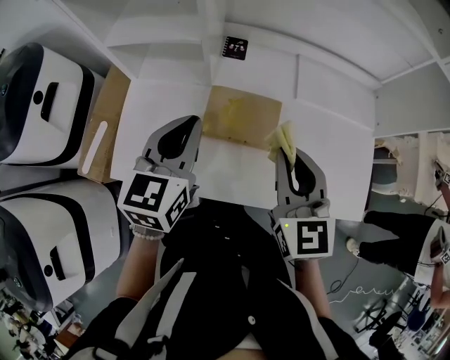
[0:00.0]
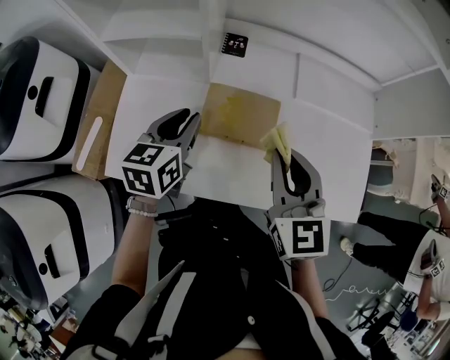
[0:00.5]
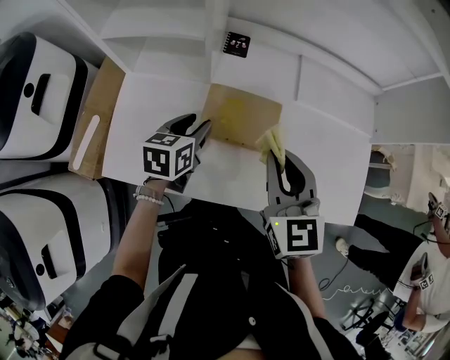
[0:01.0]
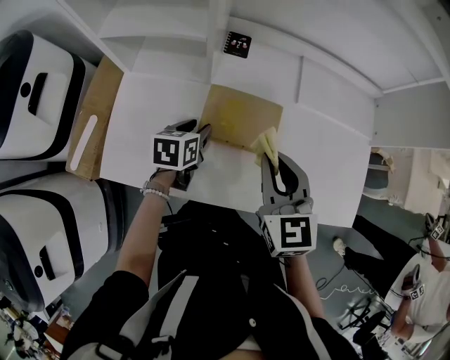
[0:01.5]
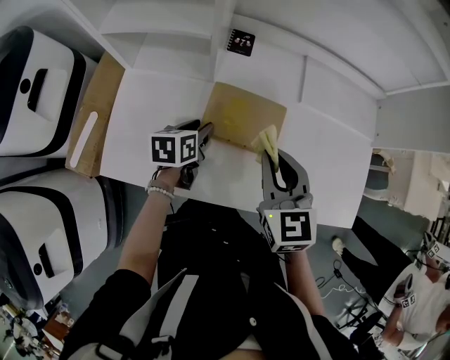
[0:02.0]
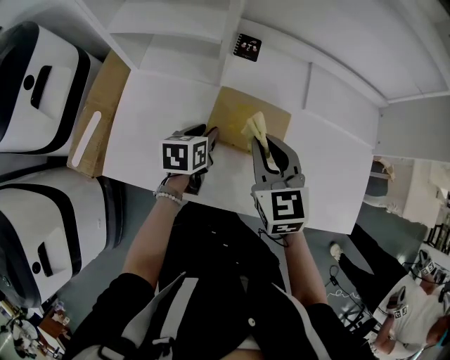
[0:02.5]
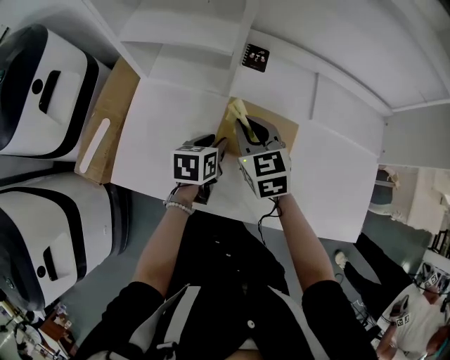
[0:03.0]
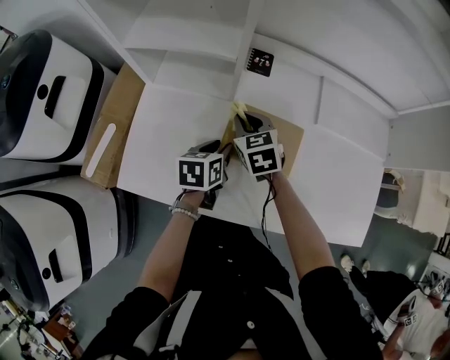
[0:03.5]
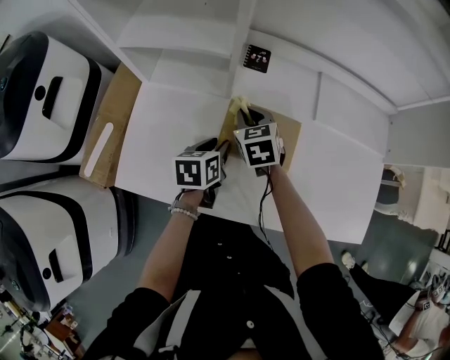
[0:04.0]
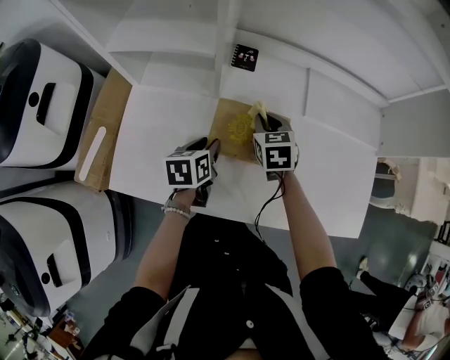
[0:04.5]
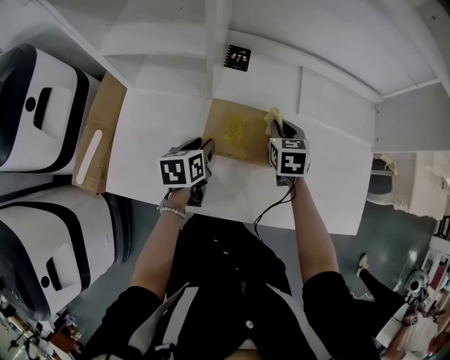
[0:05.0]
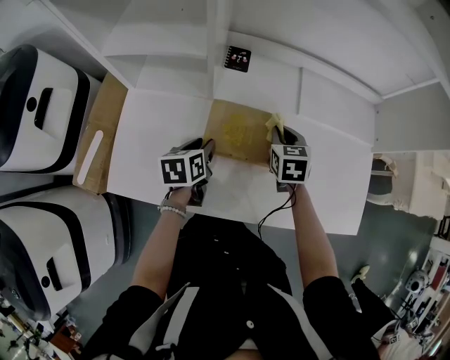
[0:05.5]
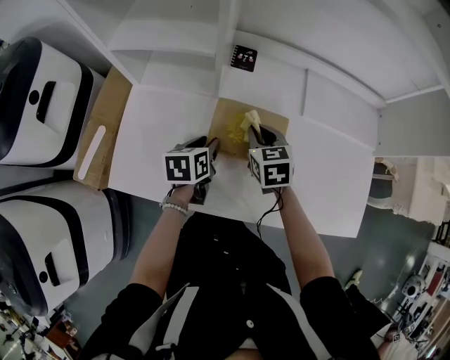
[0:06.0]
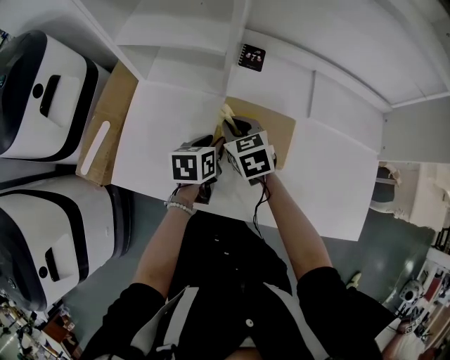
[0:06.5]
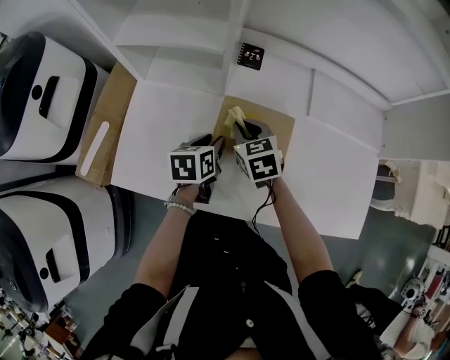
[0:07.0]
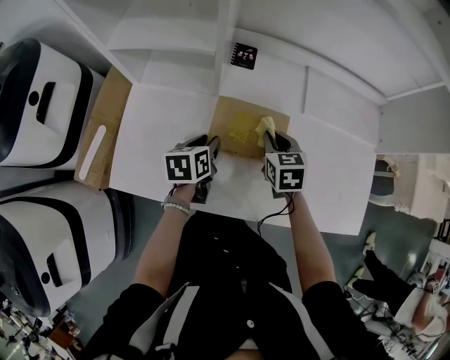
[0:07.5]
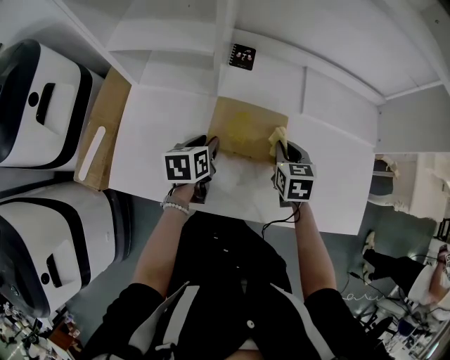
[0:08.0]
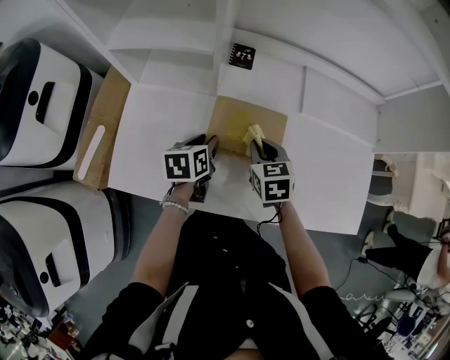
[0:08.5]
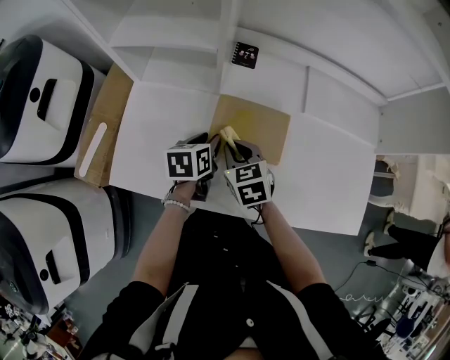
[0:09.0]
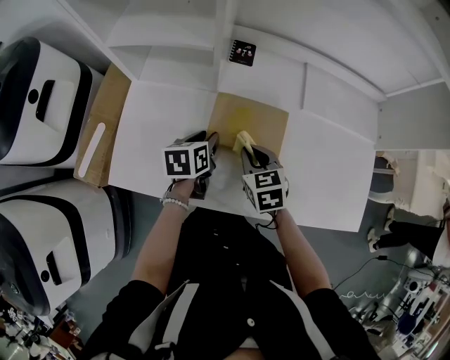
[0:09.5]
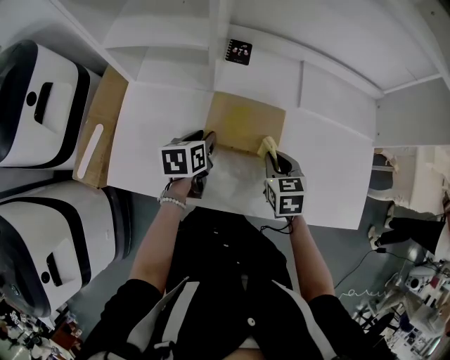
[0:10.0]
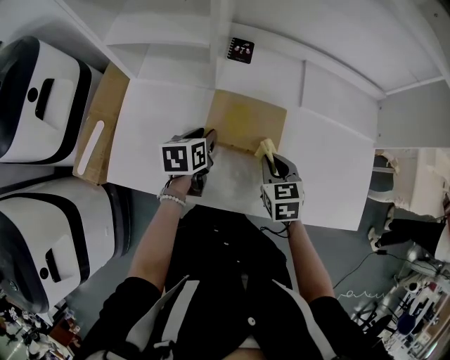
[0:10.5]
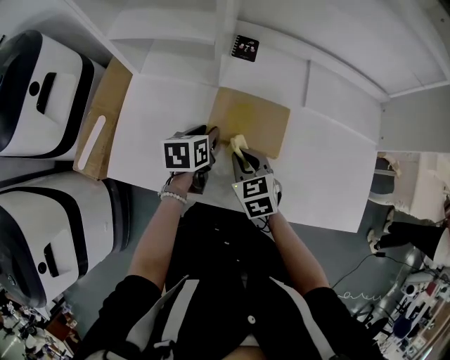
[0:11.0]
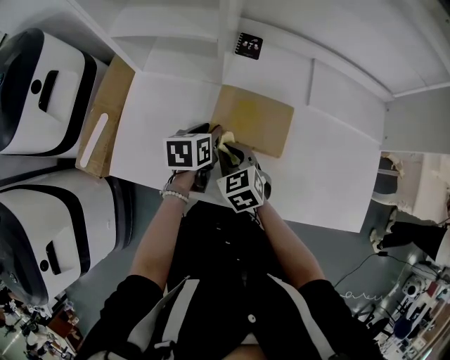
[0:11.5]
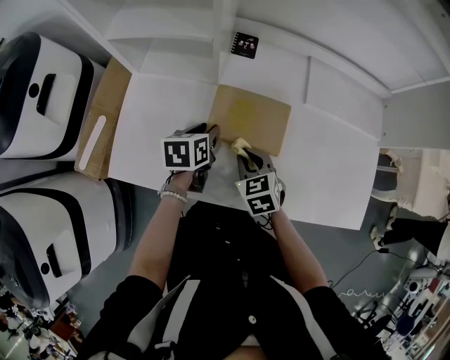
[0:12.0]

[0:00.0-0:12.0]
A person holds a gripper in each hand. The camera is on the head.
0:00.0 to 0:02.0: The left gripper shifts some 25 cm downward, changes its angle by roughly 40 degrees, and opens its fingers. The right gripper moves downward, about 5 cm.
0:02.0 to 0:04.0: The right gripper travels forward, downward and to the left by about 25 cm.
0:04.0 to 0:06.0: The right gripper moves to the right, roughly 5 cm.
0:06.0 to 0:08.0: The right gripper heads to the right, covering roughly 10 cm.
0:08.0 to 0:10.0: The right gripper heads backward, covering roughly 5 cm, and travels to the left and back again, roughly 15 cm each way.
0:10.0 to 0:12.0: The right gripper heads to the left, covering some 10 cm.

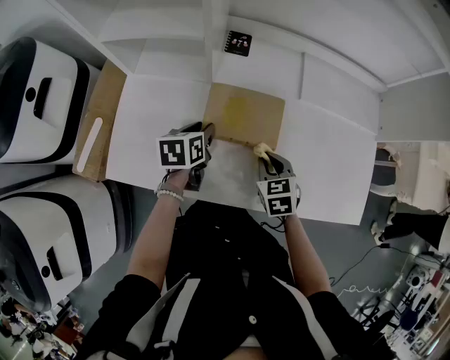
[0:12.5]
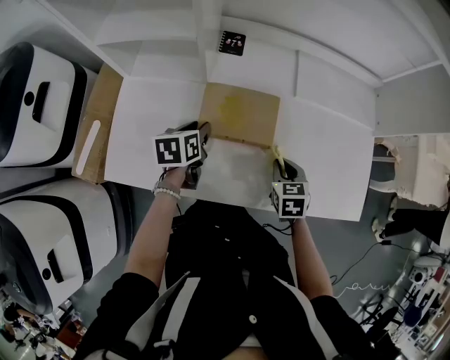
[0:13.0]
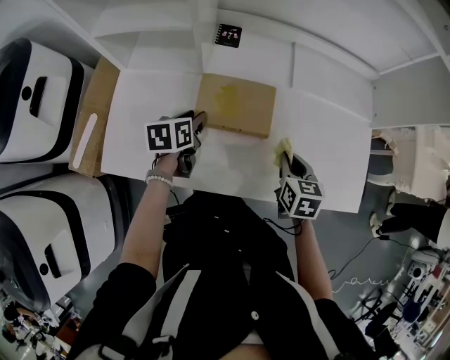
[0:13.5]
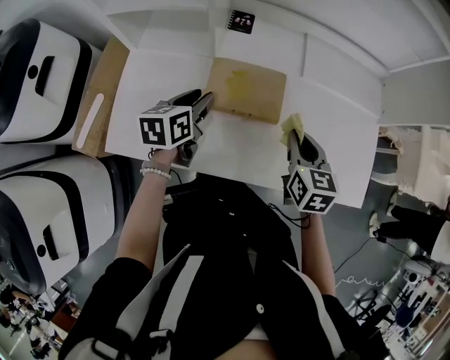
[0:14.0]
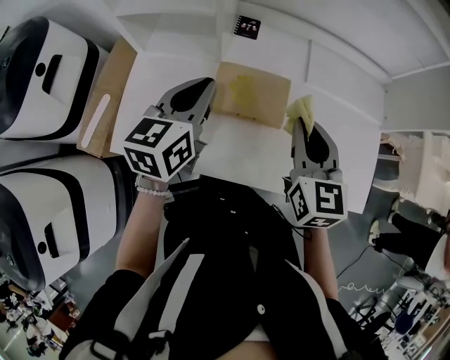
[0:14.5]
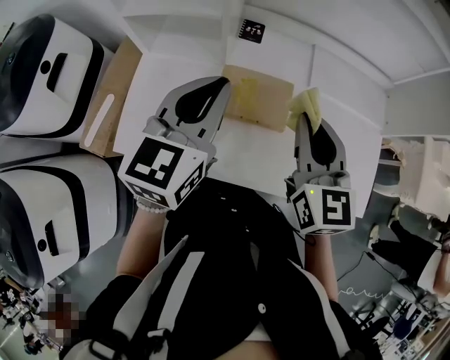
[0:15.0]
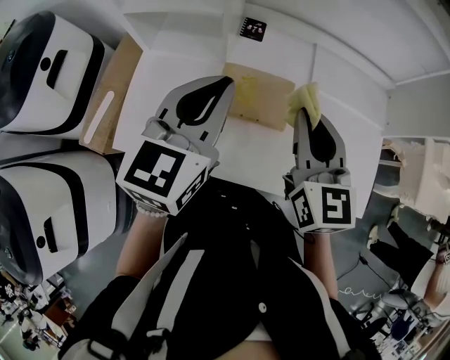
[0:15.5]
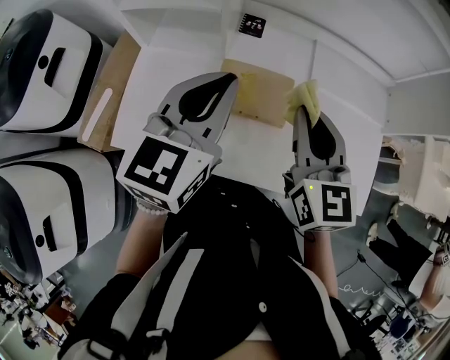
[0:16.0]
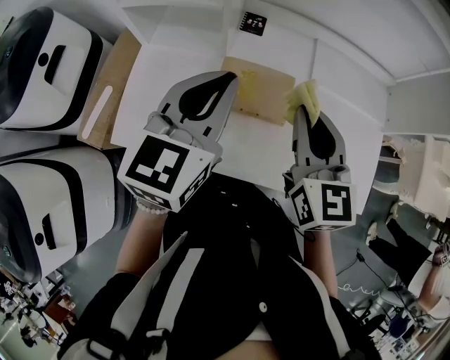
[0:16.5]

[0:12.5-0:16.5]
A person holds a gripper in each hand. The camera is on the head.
0:12.5 to 0:14.5: The two grippers go some 20 cm upward. The left gripper changes its angle by approximately 30 degrees, and closes. Meanwhile the right gripper tilts its fingers some 30 degrees upward.
0:14.5 to 0:16.5: The right gripper shifts by some 5 cm. The left gripper is displaced upward by some 10 cm.

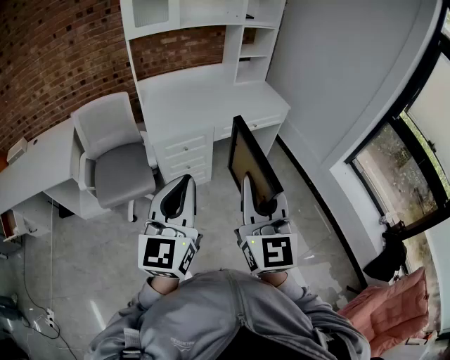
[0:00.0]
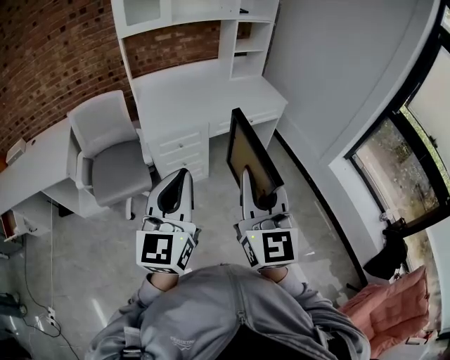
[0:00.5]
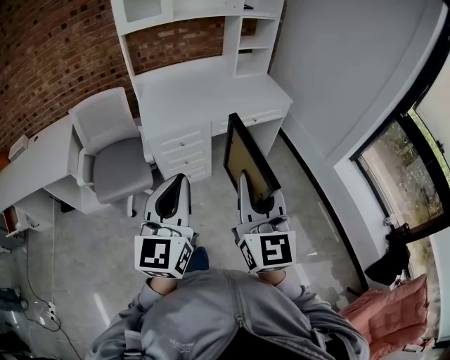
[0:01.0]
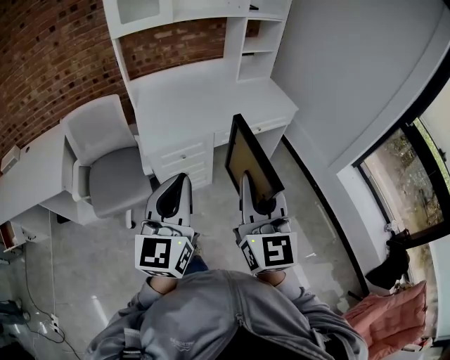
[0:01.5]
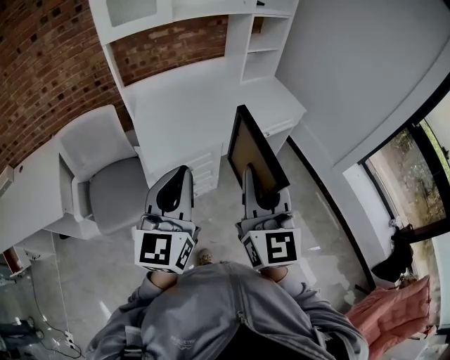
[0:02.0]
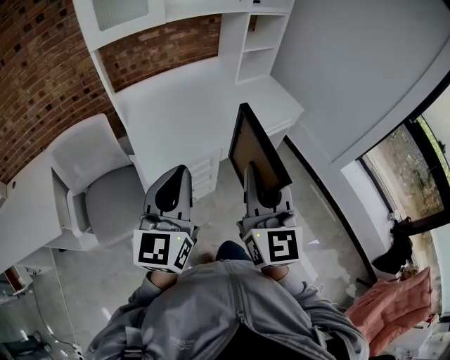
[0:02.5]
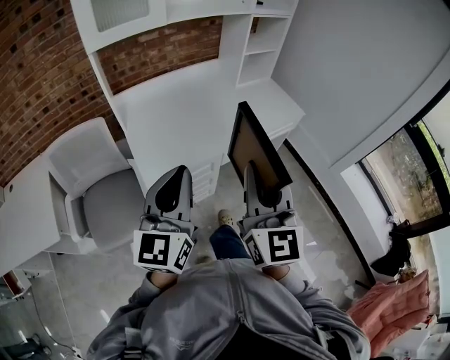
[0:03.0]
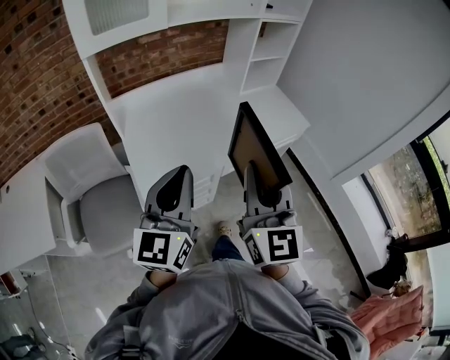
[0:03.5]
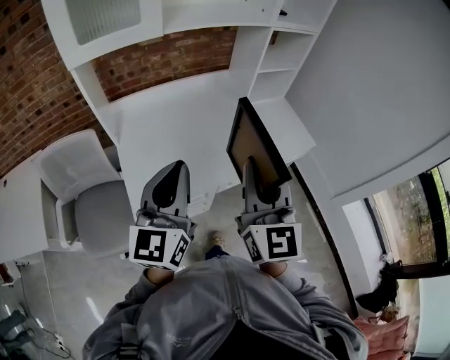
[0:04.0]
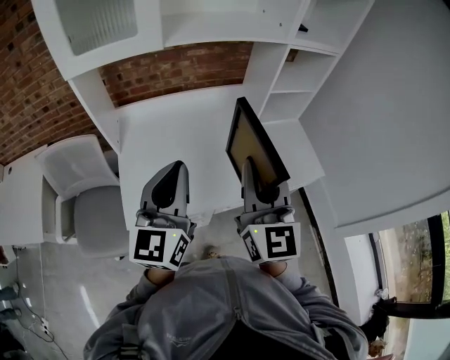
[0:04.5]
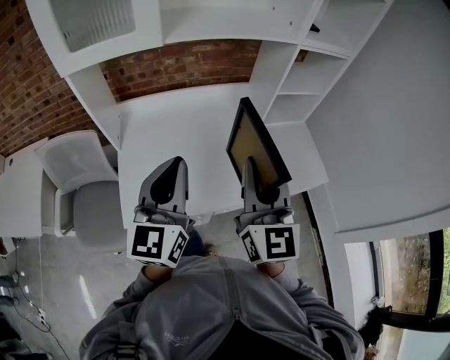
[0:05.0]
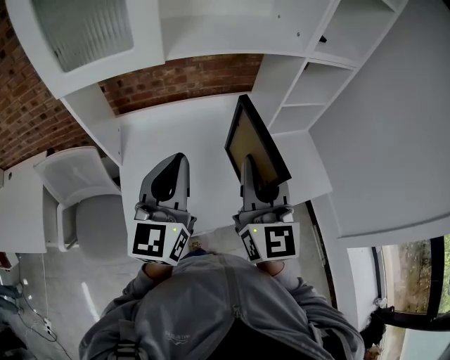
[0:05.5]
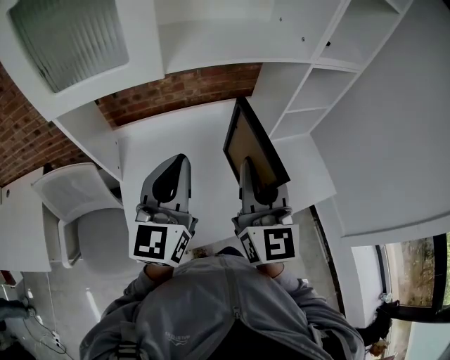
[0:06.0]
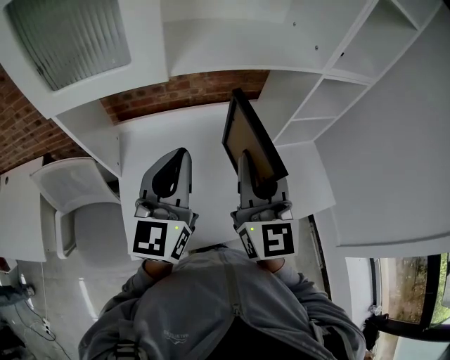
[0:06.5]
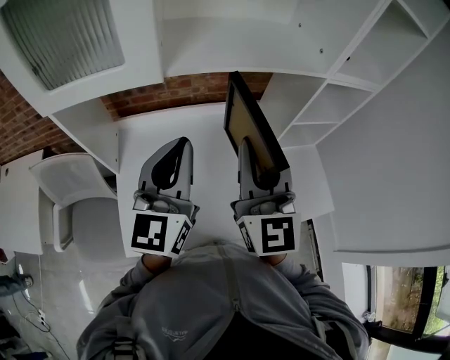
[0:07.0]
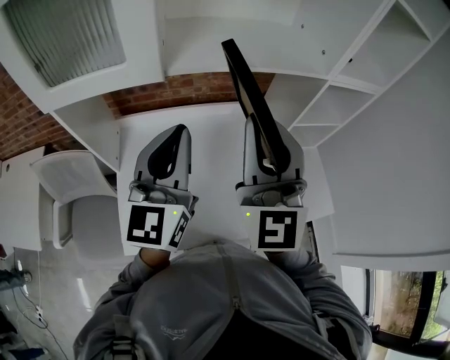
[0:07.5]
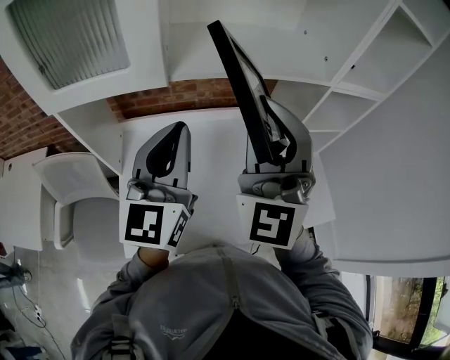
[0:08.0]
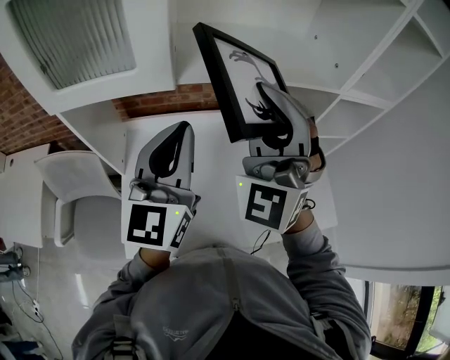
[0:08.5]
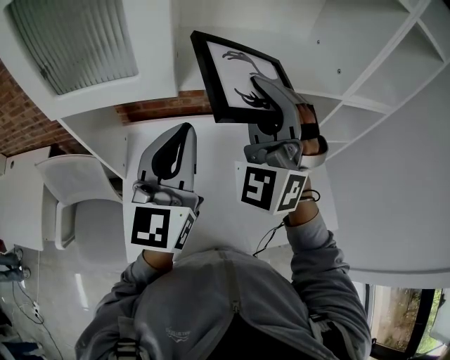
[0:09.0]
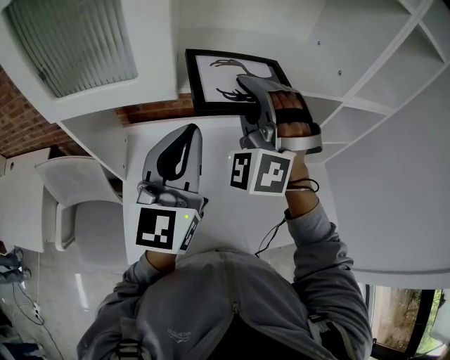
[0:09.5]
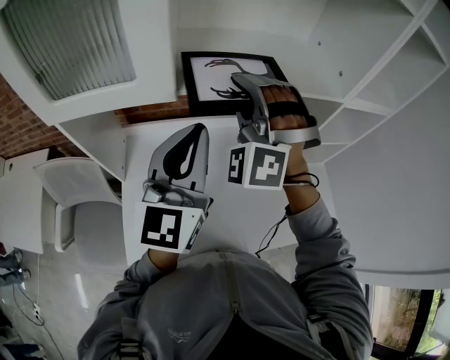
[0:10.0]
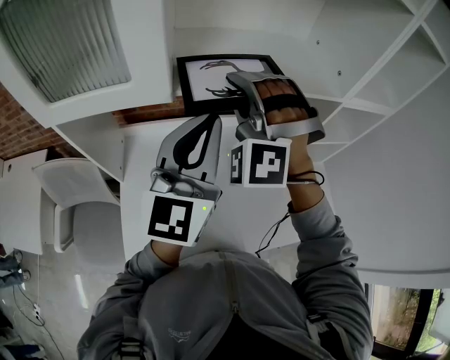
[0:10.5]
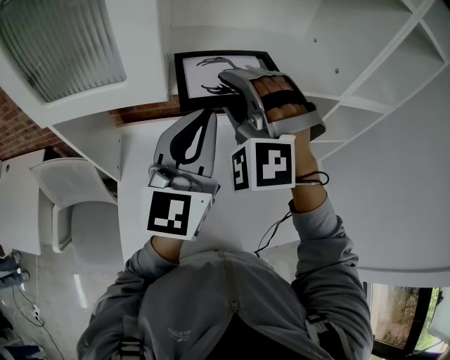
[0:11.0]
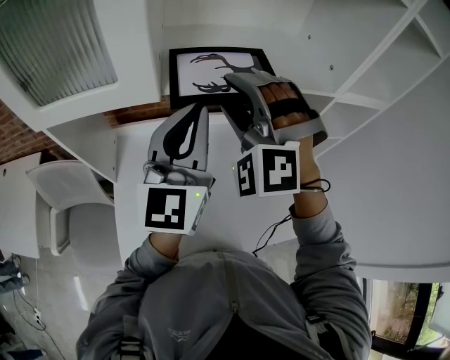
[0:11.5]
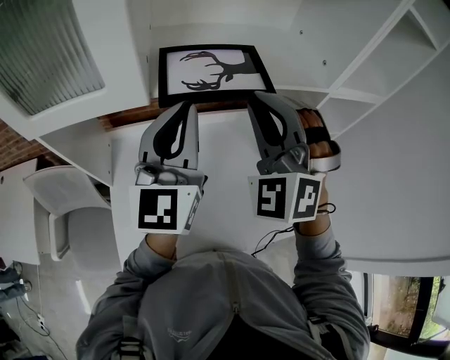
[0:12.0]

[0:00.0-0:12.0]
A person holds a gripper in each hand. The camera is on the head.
0:00.0 to 0:02.0: Both grippers move forward, roughly 30 cm.
0:02.0 to 0:04.0: The two grippers go some 30 cm forward.
0:04.0 to 0:06.0: The two grippers go roughly 25 cm forward.
0:06.0 to 0:08.0: The left gripper shifts roughly 10 cm forward and upward. The right gripper goes some 15 cm upward and forward, and rotates roughly 40 degrees.
0:08.0 to 0:10.0: The right gripper goes roughly 15 cm forward, and twists some 40 degrees counterclockwise, seen from behind.
0:10.0 to 0:12.0: The right gripper shifts roughly 5 cm to the right, and opens, then closes once more.
